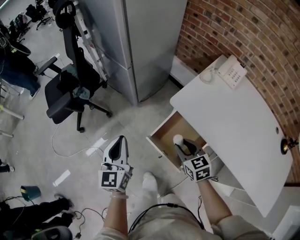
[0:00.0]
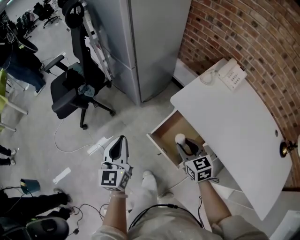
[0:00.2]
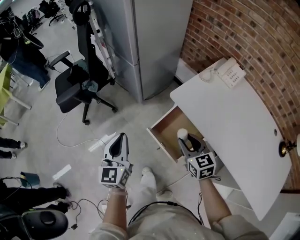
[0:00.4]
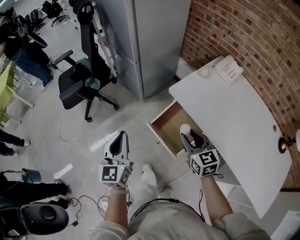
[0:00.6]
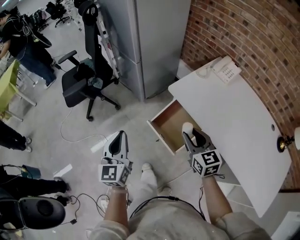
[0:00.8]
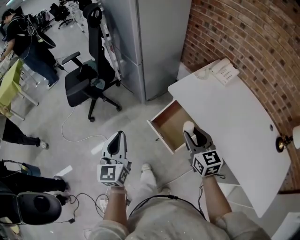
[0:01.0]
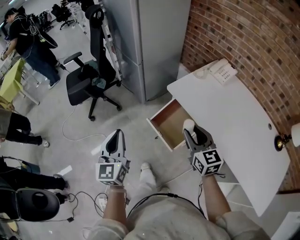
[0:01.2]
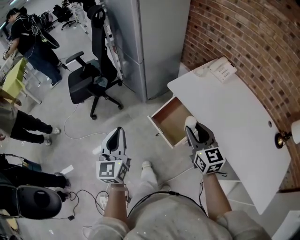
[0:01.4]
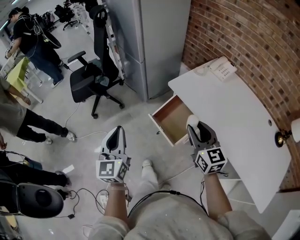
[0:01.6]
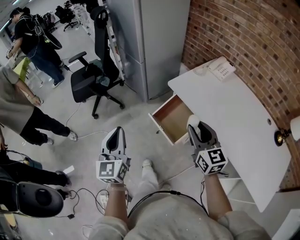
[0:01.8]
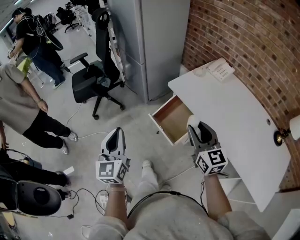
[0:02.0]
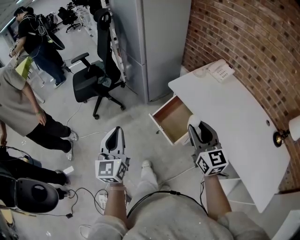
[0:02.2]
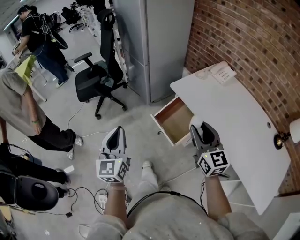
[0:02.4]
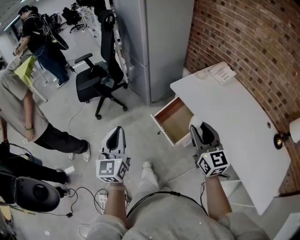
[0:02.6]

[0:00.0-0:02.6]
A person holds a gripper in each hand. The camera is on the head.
0:00.0 to 0:01.2: The right gripper travels upward and backward by some 20 cm, and rotates approximately 20 degrees. Meanwhile the left gripper moves backward and upward, approximately 20 cm.
0:01.2 to 0:02.6: The left gripper travels backward by about 10 cm, while the right gripper goes about 10 cm backward and upward.

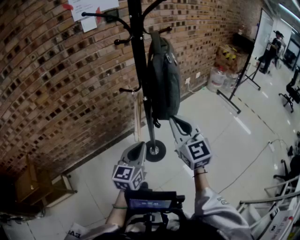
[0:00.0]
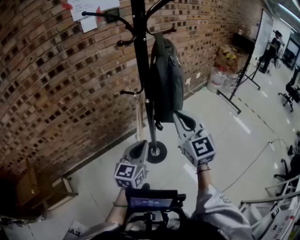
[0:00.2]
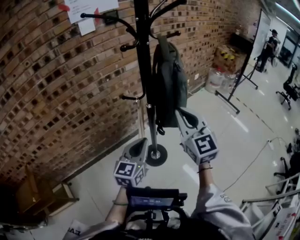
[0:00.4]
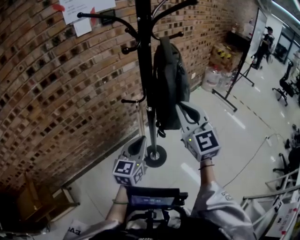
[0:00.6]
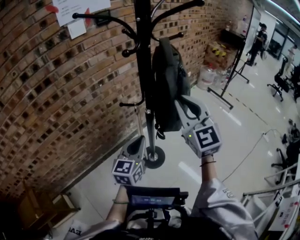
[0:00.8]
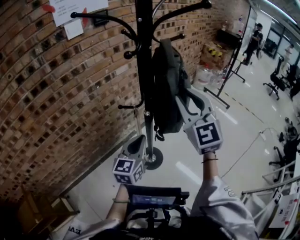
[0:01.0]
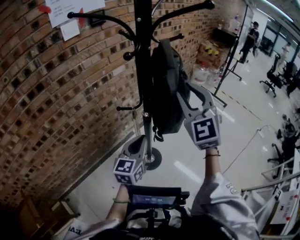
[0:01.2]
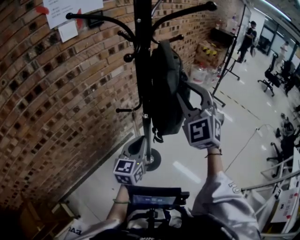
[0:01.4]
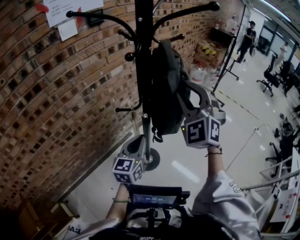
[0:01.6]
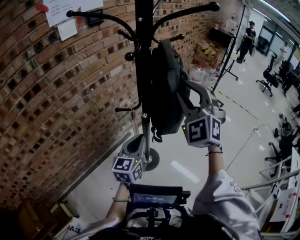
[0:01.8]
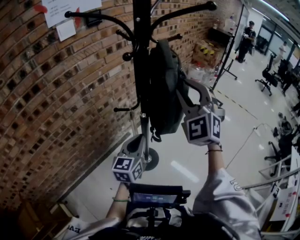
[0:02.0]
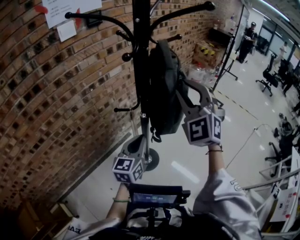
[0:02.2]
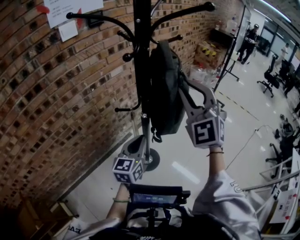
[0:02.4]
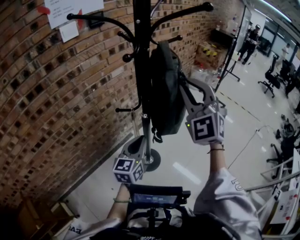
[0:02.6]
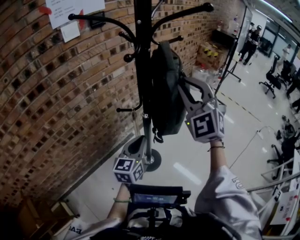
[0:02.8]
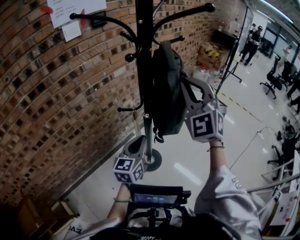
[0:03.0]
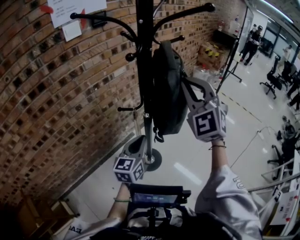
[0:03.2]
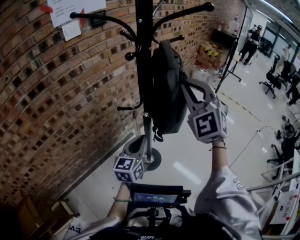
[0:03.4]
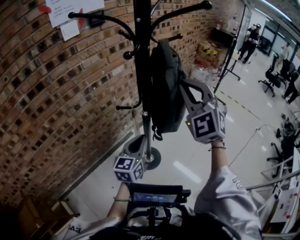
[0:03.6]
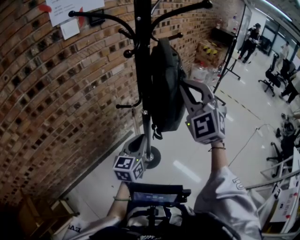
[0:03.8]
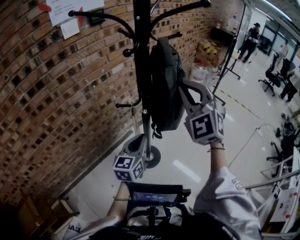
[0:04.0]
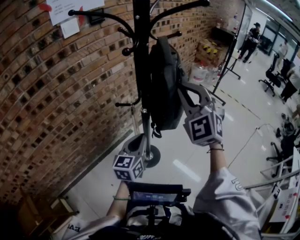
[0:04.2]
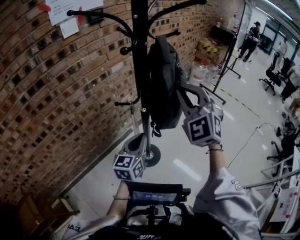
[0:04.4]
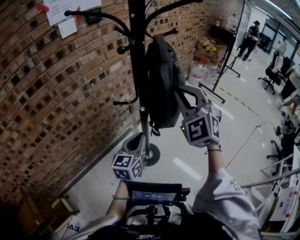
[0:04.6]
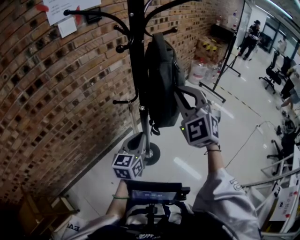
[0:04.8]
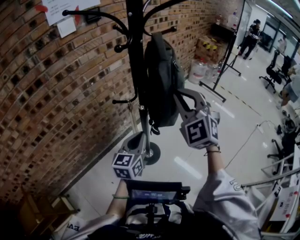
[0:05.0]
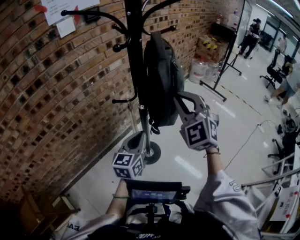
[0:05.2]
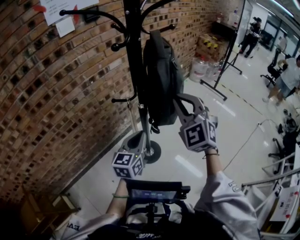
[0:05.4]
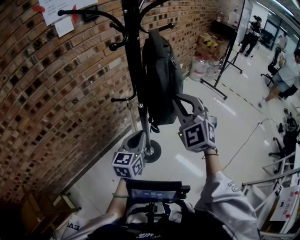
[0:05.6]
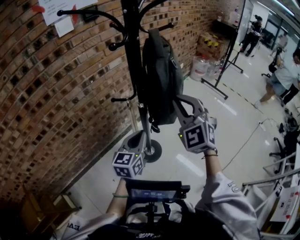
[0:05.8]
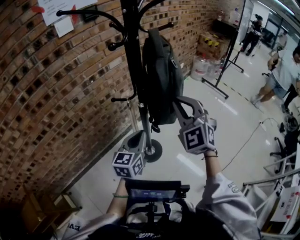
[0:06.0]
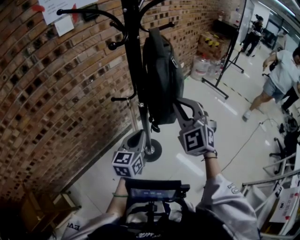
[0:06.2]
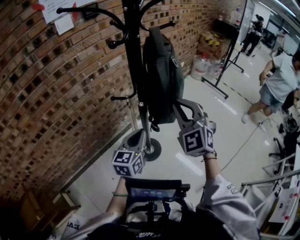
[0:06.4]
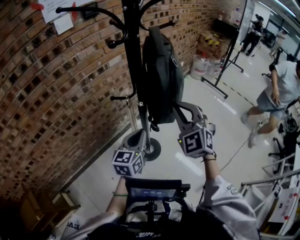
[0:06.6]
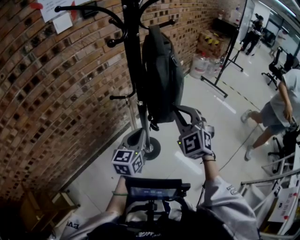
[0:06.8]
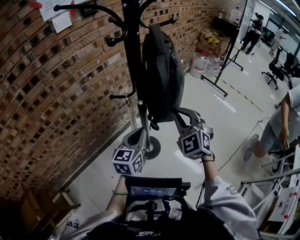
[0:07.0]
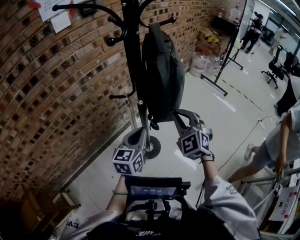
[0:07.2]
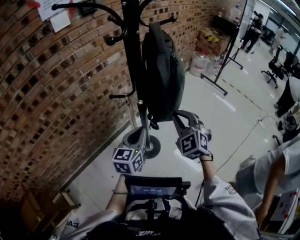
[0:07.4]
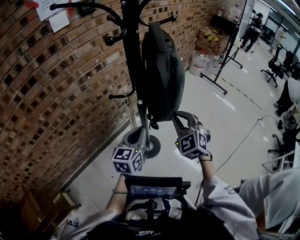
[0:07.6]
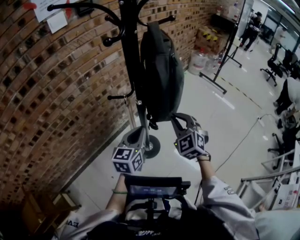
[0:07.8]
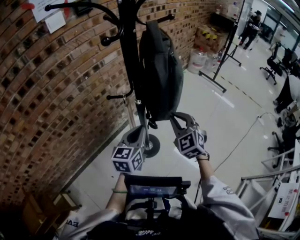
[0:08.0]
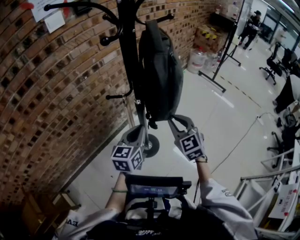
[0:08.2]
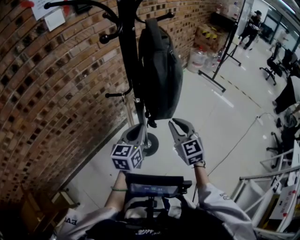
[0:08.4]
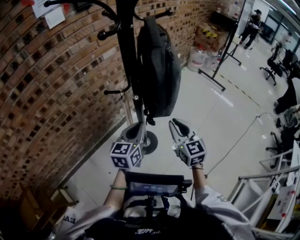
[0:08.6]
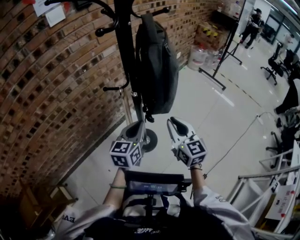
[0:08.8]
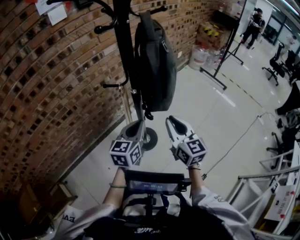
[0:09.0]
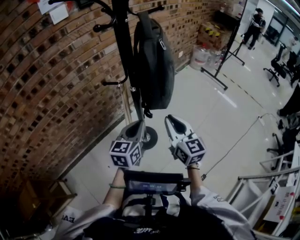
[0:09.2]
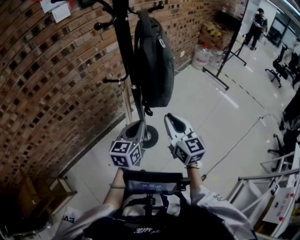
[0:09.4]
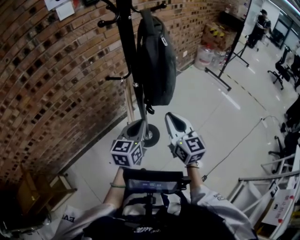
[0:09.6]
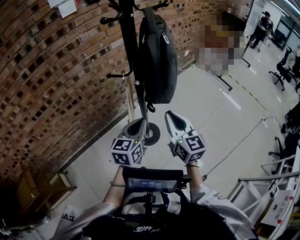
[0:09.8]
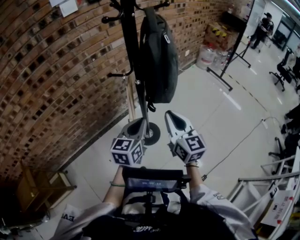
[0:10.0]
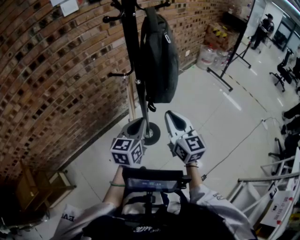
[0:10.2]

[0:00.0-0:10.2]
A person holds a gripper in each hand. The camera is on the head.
0:00.0 to 0:01.4: The left gripper moves forward, approximately 15 cm; the right gripper goes some 15 cm forward and upward, rolls counterclockwise, seen from behind, by some 40 degrees, and opens up.
0:01.4 to 0:03.0: The right gripper closes up.
0:03.0 to 0:04.4: The grippers move only a little.
0:04.4 to 0:05.8: The right gripper shifts approximately 5 cm downward.
0:05.8 to 0:07.2: The right gripper moves downward, roughly 10 cm.
0:07.2 to 0:08.8: The right gripper shifts by about 5 cm, and twists approximately 50 degrees clockwise, seen from behind.
0:08.8 to 0:10.2: The right gripper changes place by roughly 5 cm. Meanwhile the left gripper travels backward by about 5 cm.

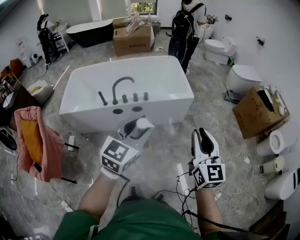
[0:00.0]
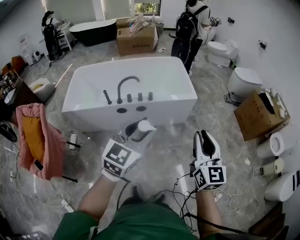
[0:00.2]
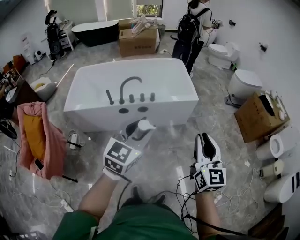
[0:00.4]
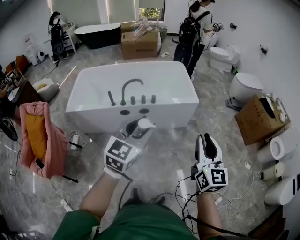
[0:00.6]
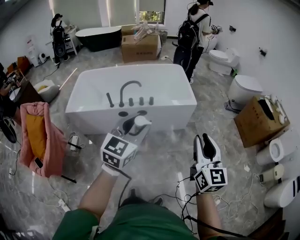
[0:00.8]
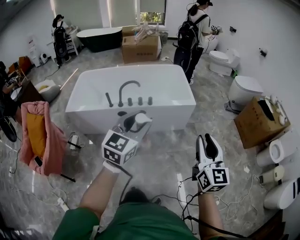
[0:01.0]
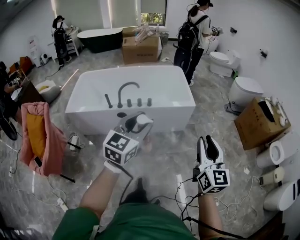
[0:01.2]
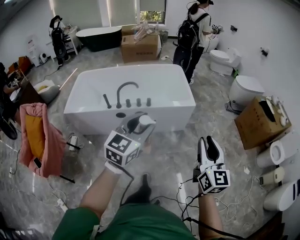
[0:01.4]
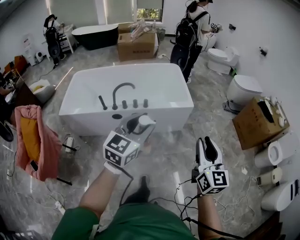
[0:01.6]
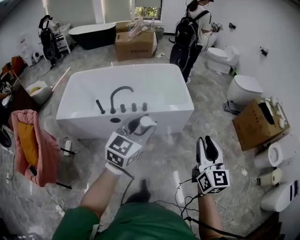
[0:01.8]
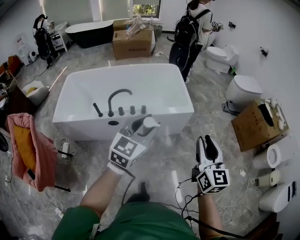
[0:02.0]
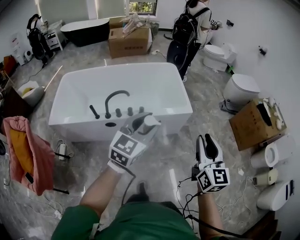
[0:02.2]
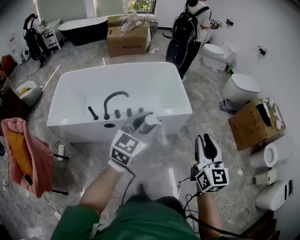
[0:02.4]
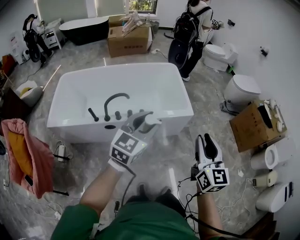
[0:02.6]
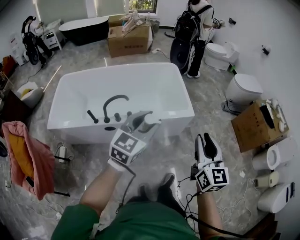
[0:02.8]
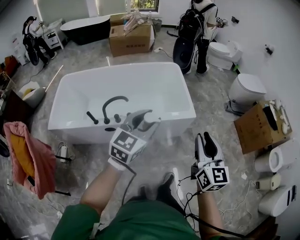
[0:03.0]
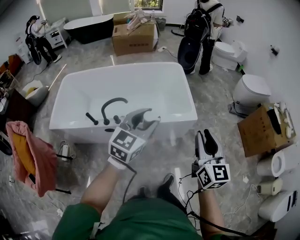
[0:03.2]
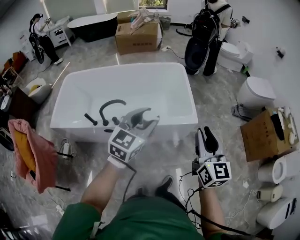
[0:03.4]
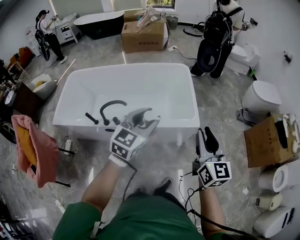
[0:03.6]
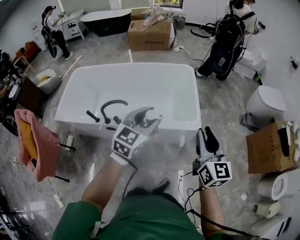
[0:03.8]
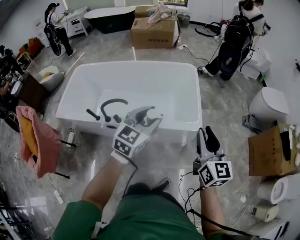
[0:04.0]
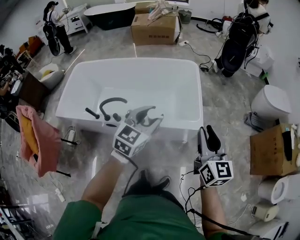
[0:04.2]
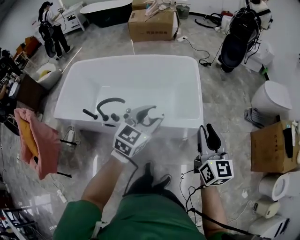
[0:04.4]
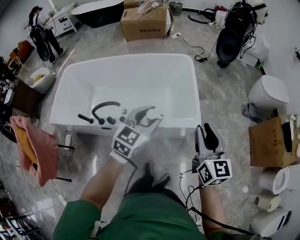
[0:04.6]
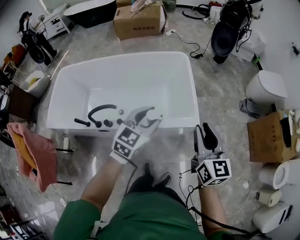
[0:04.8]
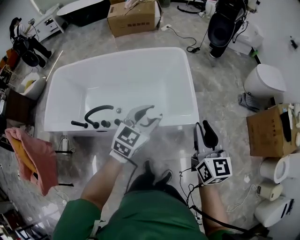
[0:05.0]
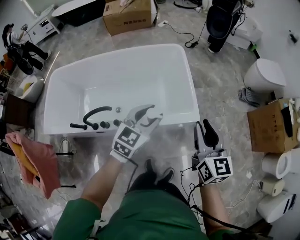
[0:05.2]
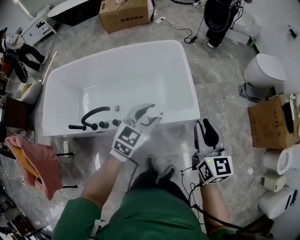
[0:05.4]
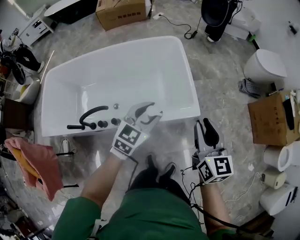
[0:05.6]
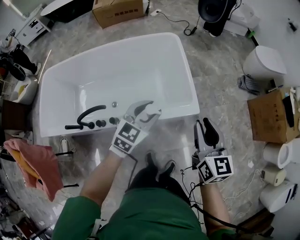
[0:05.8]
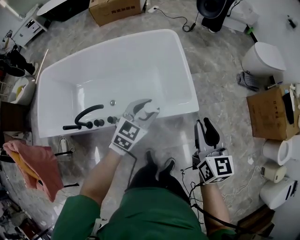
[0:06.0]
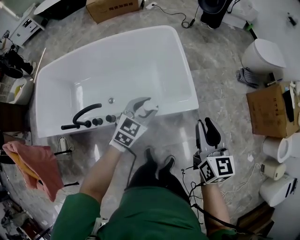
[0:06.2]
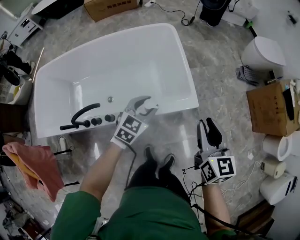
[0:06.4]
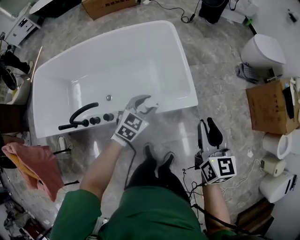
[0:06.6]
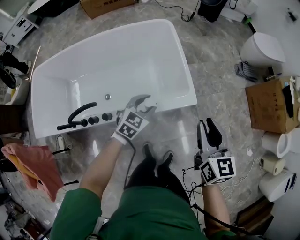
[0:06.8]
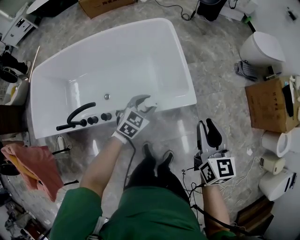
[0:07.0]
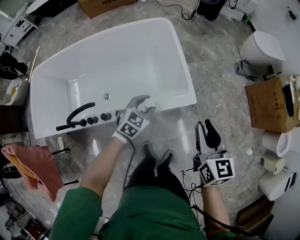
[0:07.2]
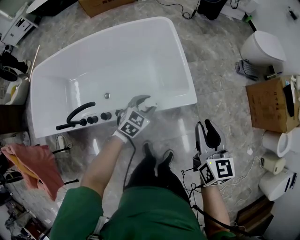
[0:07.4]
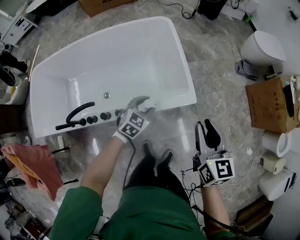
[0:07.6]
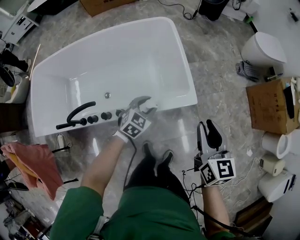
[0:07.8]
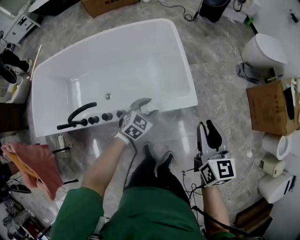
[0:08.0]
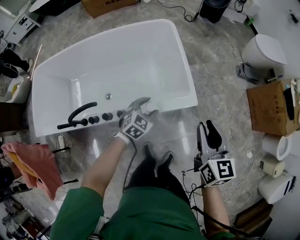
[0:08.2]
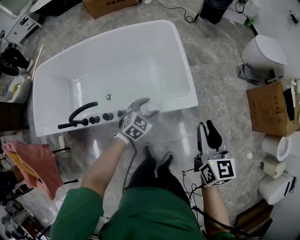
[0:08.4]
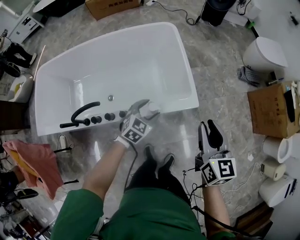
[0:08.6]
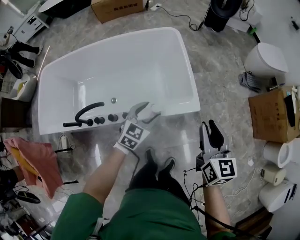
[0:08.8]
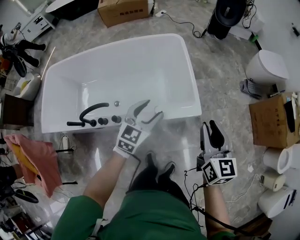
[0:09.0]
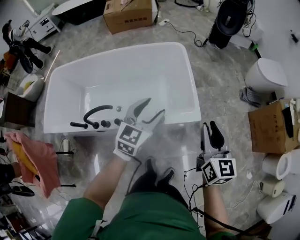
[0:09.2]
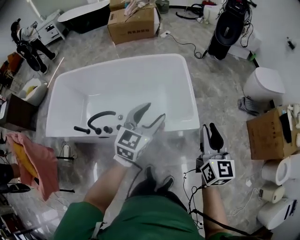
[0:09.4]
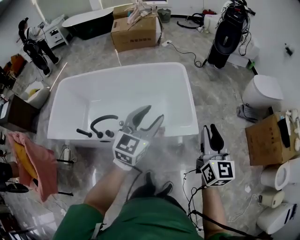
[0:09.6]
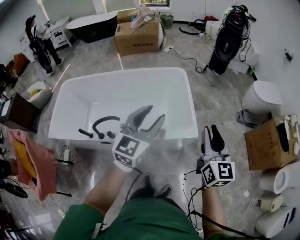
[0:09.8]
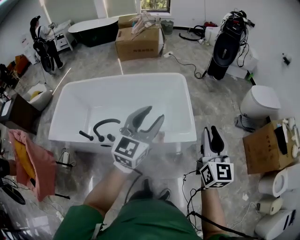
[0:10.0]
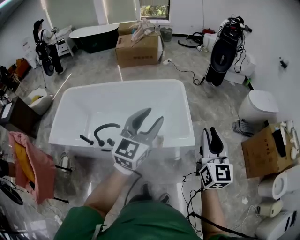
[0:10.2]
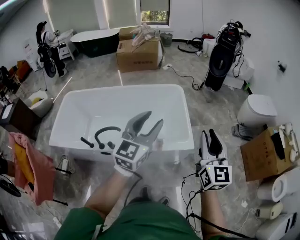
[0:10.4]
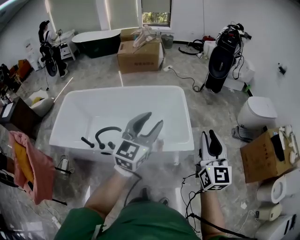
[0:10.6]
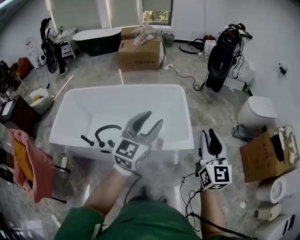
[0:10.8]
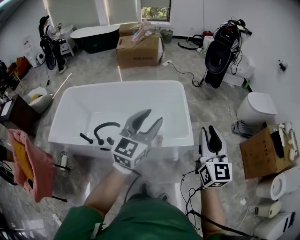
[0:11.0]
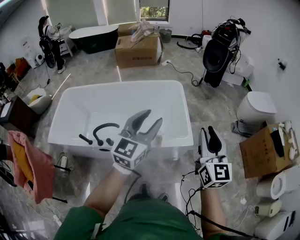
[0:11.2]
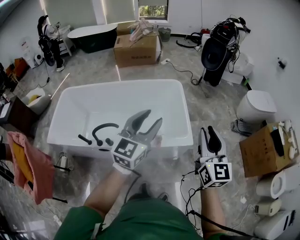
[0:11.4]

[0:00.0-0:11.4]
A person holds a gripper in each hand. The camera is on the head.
0:00.0 to 0:01.4: The left gripper reaches roughly 5 cm to the left, then returns; the right gripper heads to the right, covering approximately 5 cm.
0:01.4 to 0:02.8: The right gripper shifts approximately 30 cm forward and to the left, while the left gripper is displaced forward by some 30 cm.
0:02.8 to 0:04.2: The left gripper moves forward and to the right, approximately 30 cm, while the right gripper heads forward, covering approximately 30 cm.
0:04.2 to 0:05.6: Both grippers move forward and downward, approximately 20 cm.
0:05.6 to 0:07.2: The right gripper goes some 5 cm downward, while the left gripper shifts approximately 20 cm downward.
0:07.2 to 0:08.6: The left gripper opens.
0:08.6 to 0:10.0: The left gripper heads upward, covering approximately 40 cm, and tilts its fingers roughly 40 degrees upward. The right gripper heads upward and backward, covering some 20 cm, and rotates roughly 20 degrees.
0:10.0 to 0:11.4: The grippers stay close to where they were, moving slightly.
